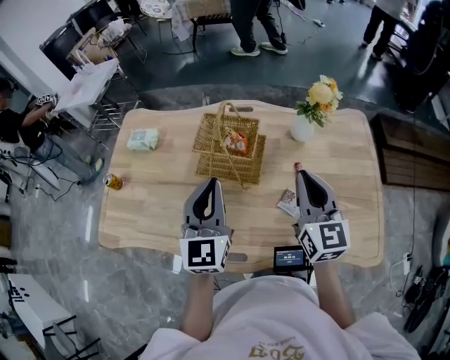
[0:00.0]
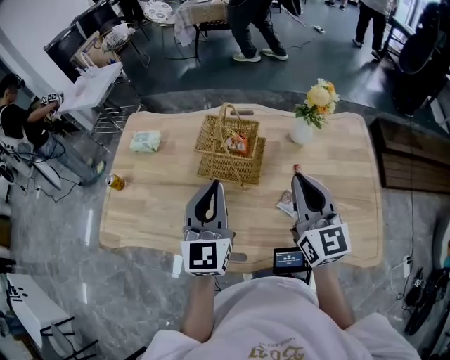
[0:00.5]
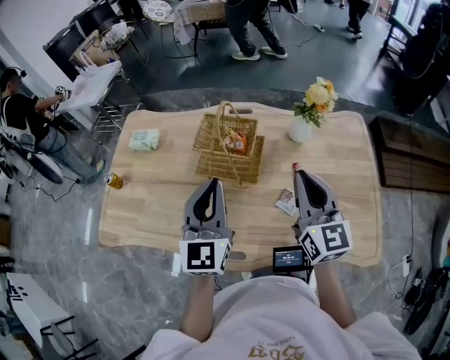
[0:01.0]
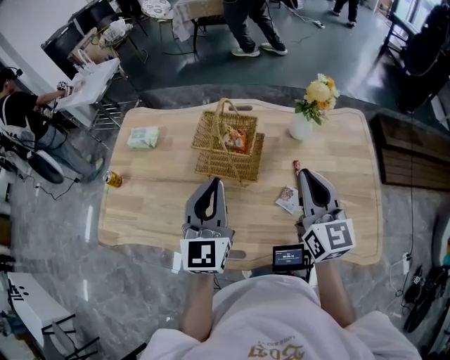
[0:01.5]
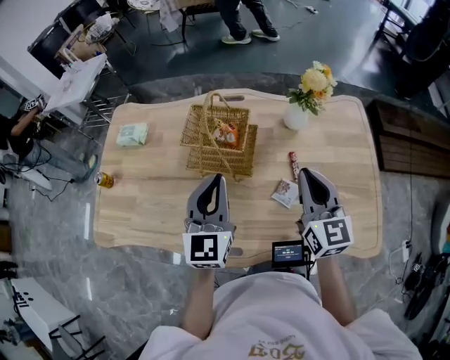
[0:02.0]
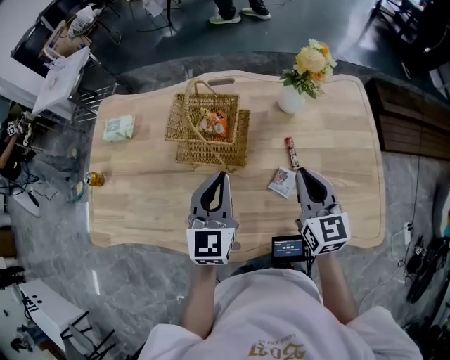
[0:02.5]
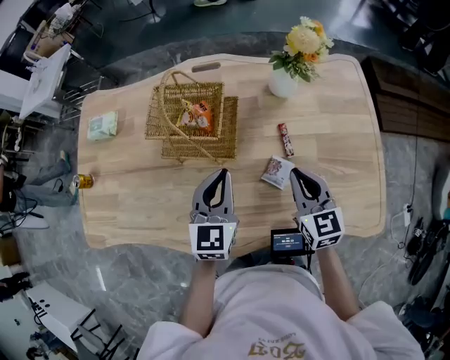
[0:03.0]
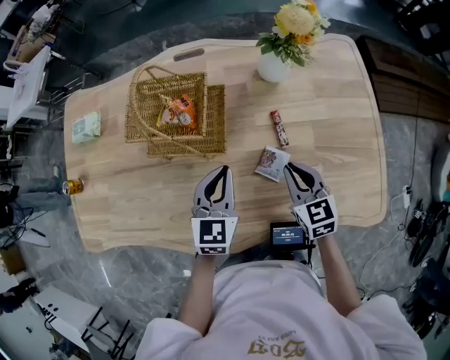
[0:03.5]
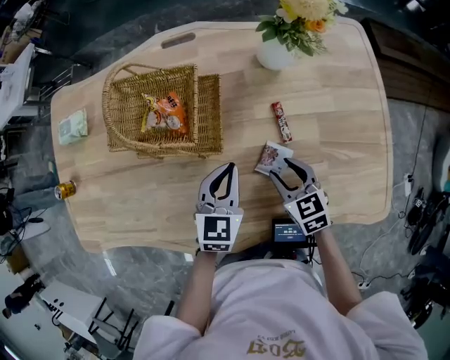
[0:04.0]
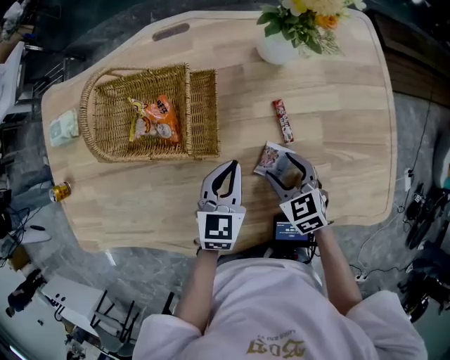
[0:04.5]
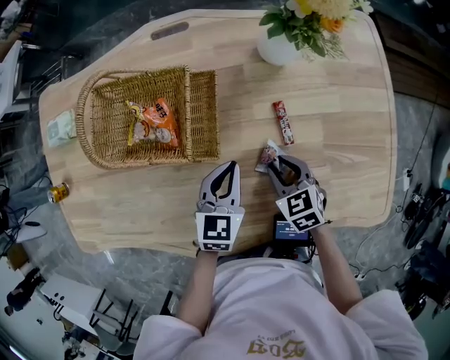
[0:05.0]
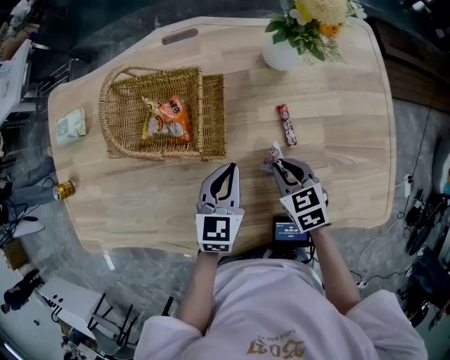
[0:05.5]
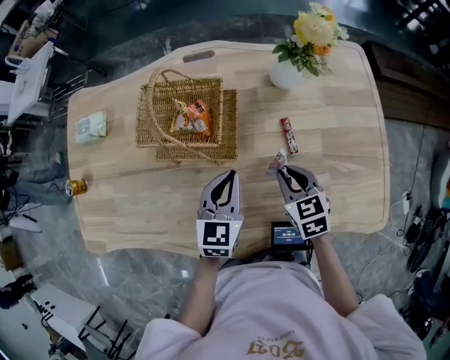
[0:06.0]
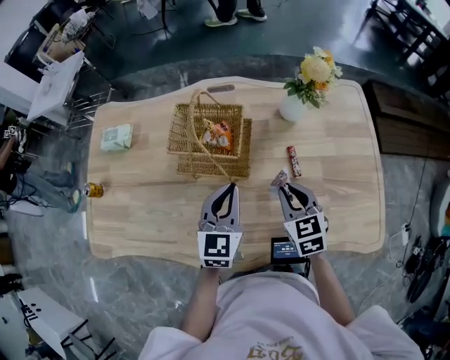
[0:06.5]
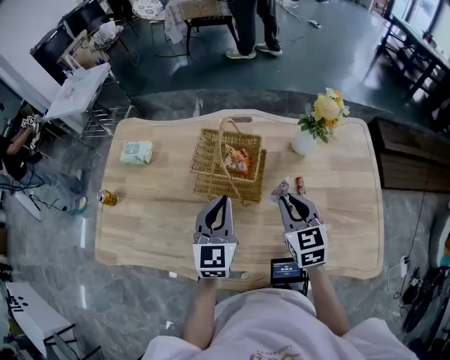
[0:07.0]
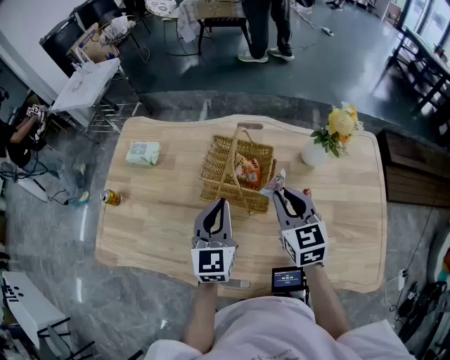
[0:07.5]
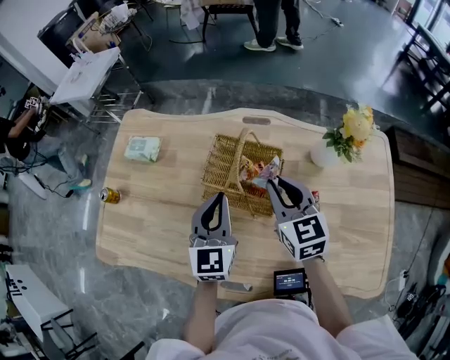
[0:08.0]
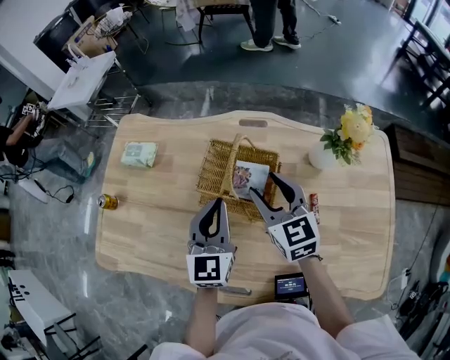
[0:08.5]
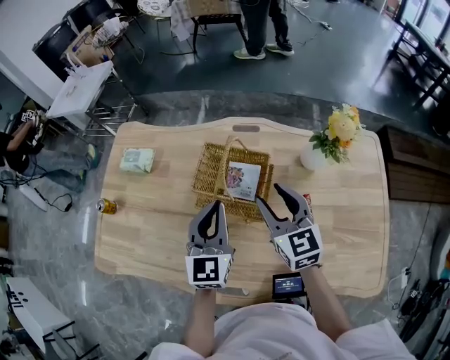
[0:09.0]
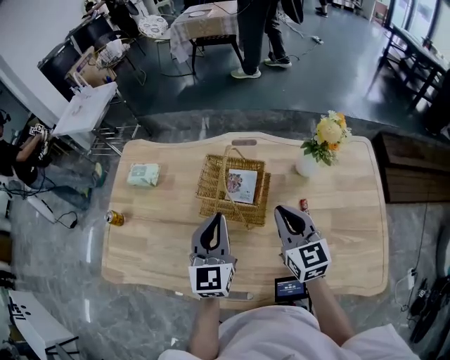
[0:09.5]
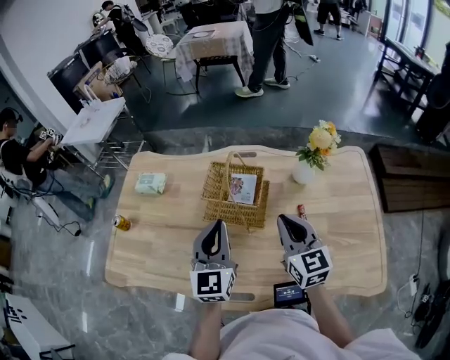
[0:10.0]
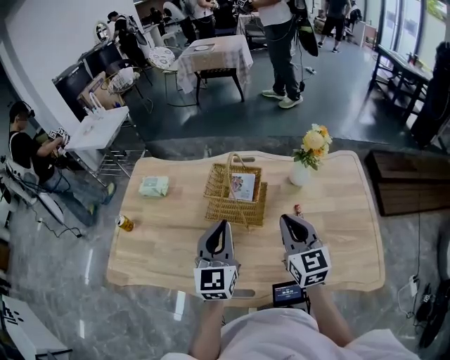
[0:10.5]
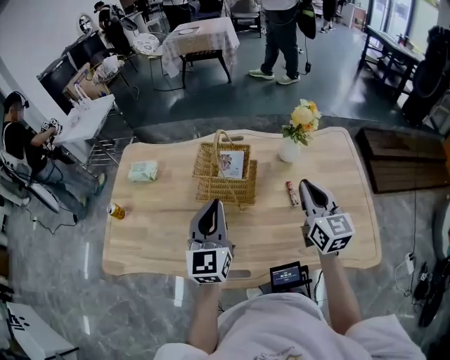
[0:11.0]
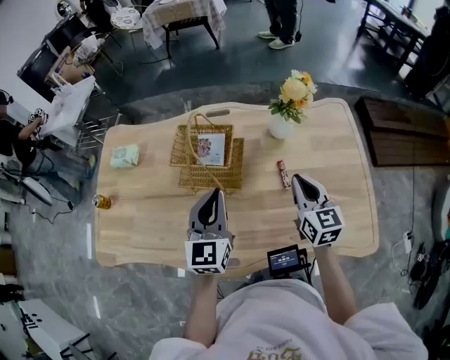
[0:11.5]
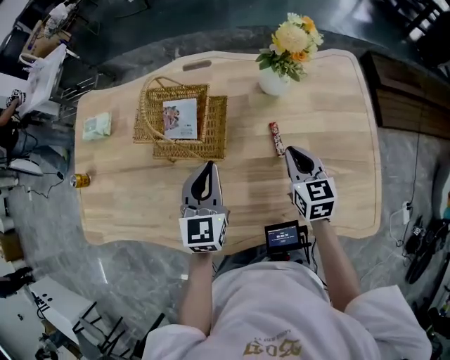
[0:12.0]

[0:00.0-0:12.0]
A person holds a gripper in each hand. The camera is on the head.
0:00.0 to 0:02.0: There are only small adjustments of the grippers.
0:02.0 to 0:04.0: The left gripper goes roughly 25 cm downward and to the right, and rotates approximately 30 degrees. Meanwhile the right gripper moves downward, about 25 cm, tips its fingers downward by some 40 degrees, and opens its fingers.
0:04.0 to 0:06.0: The right gripper moves about 5 cm, and closes; the left gripper changes place by roughly 5 cm.
0:06.0 to 0:08.0: The left gripper is displaced to the left, upward and forward by some 20 cm, and changes its angle by roughly 30 degrees, while the right gripper travels upward, forward and to the left by about 25 cm, and turns by about 30 degrees.
0:08.0 to 0:10.0: The left gripper shifts about 10 cm backward and upward. Meanwhile the right gripper moves backward, about 10 cm, and opens and closes again.
0:10.0 to 0:12.0: Both grippers travel together downward and to the right, some 20 cm. The right gripper rotates approximately 20 degrees.

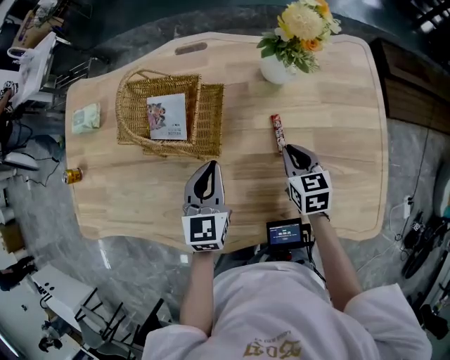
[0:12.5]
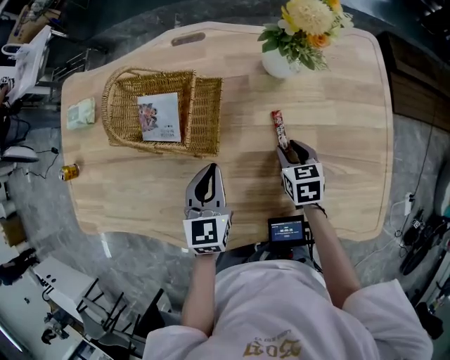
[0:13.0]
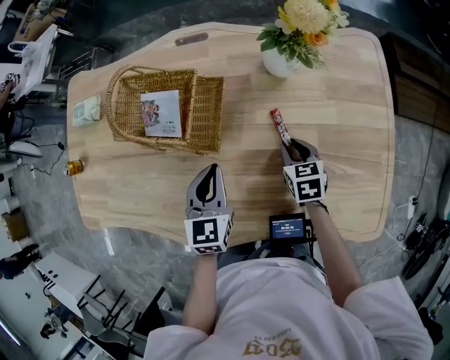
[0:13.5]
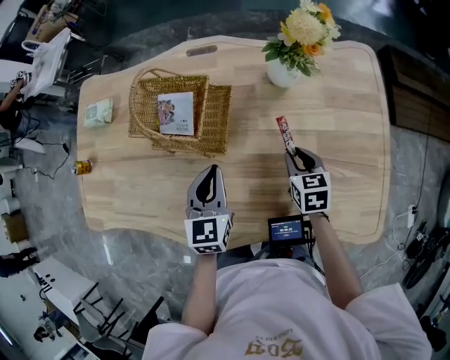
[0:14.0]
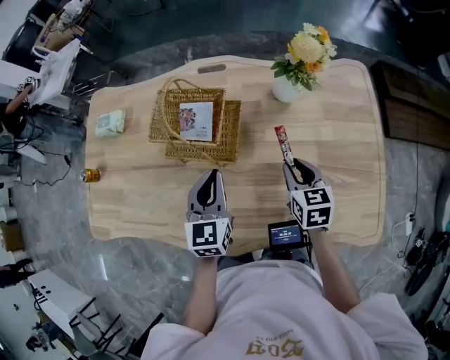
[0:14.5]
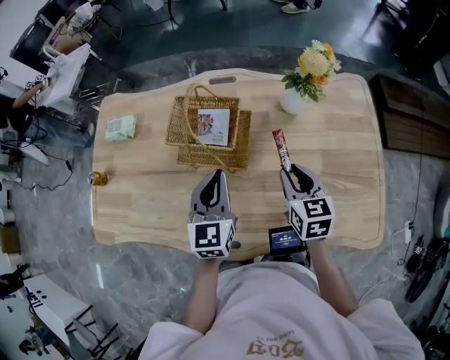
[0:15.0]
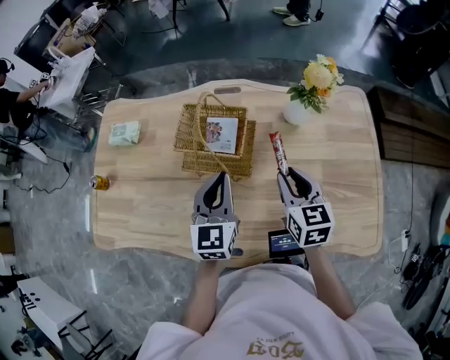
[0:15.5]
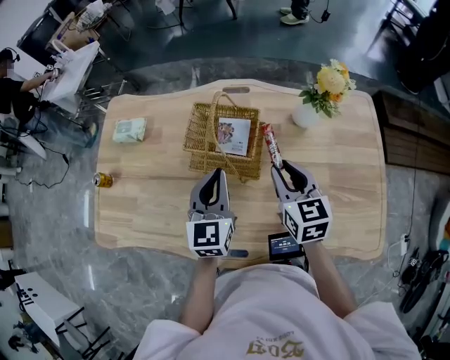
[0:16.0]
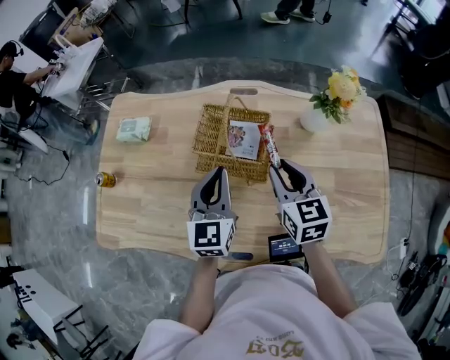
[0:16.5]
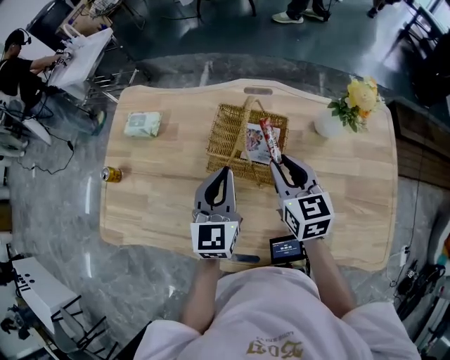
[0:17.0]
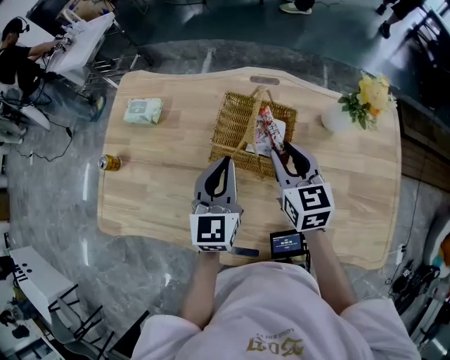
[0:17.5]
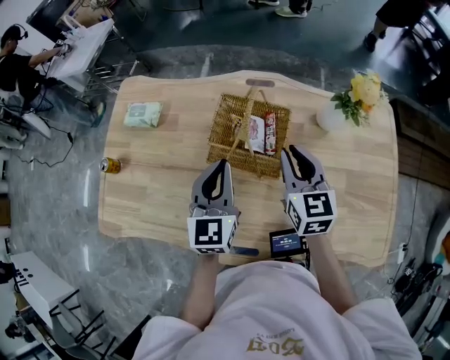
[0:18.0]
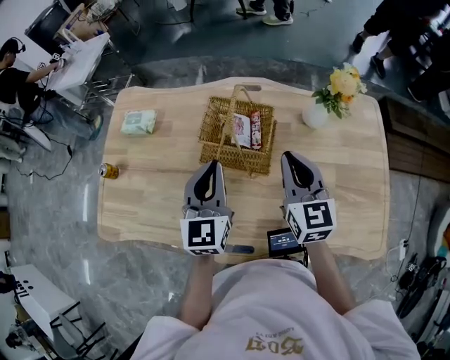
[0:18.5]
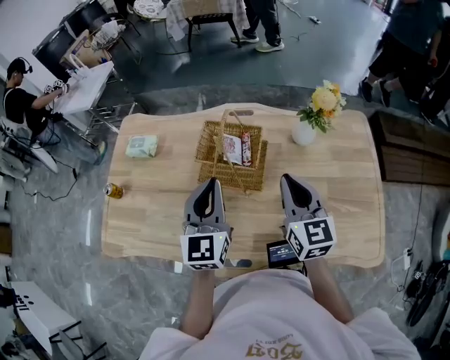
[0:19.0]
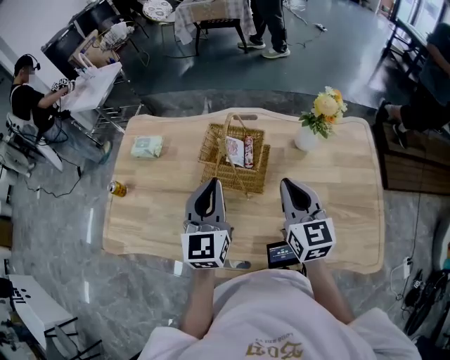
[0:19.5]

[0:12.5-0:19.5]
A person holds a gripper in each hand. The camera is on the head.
0:12.5 to 0:14.5: Both grippers move upward, some 5 cm. The right gripper opens its fingers.
0:14.5 to 0:16.0: The left gripper goes some 10 cm to the left and upward, while the right gripper travels to the left and upward by approximately 15 cm.
0:16.0 to 0:17.5: The right gripper goes roughly 10 cm to the left and forward; the left gripper heads to the left, covering about 5 cm.
0:17.5 to 0:19.5: The left gripper goes approximately 10 cm upward and backward; the right gripper is displaced backward, upward and to the right by approximately 15 cm, and closes up.

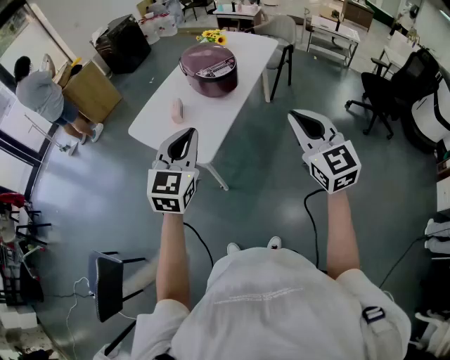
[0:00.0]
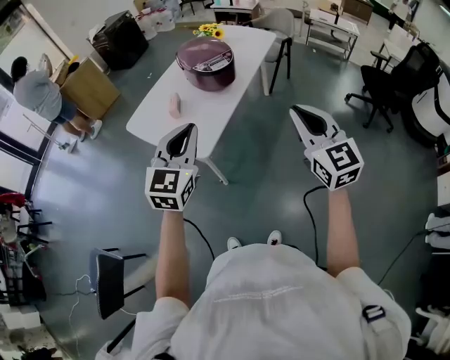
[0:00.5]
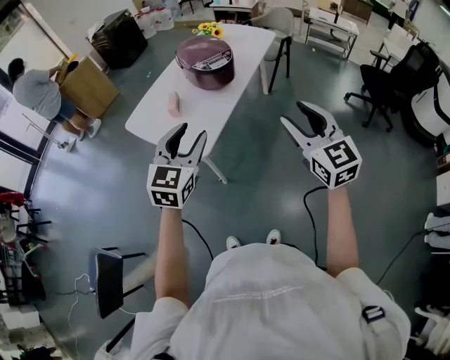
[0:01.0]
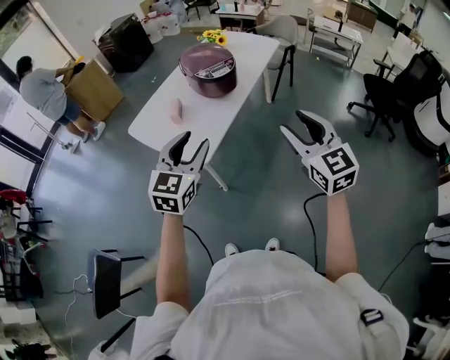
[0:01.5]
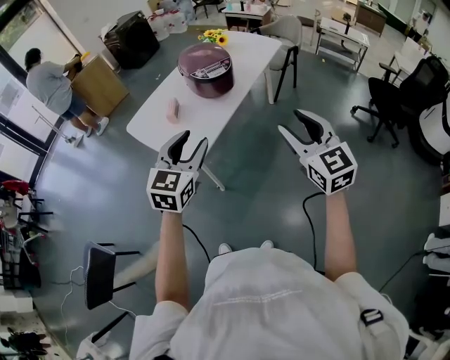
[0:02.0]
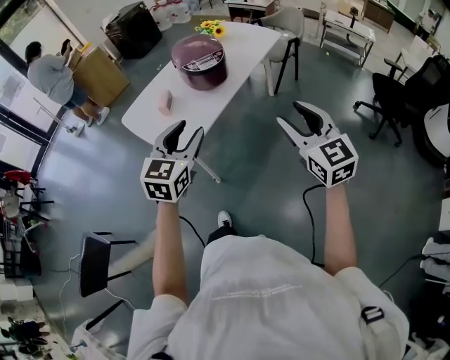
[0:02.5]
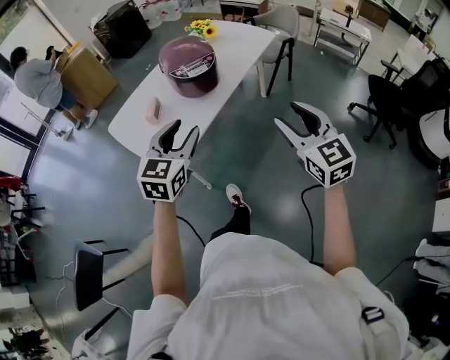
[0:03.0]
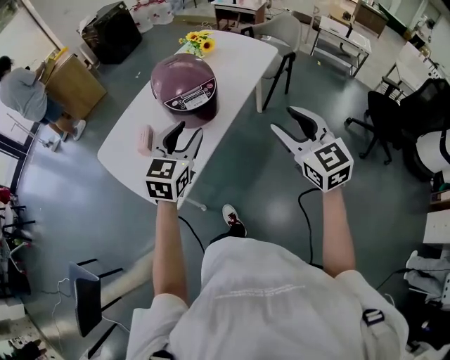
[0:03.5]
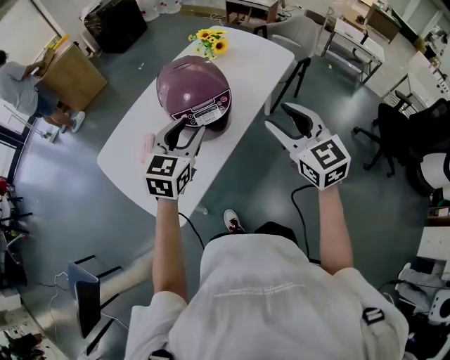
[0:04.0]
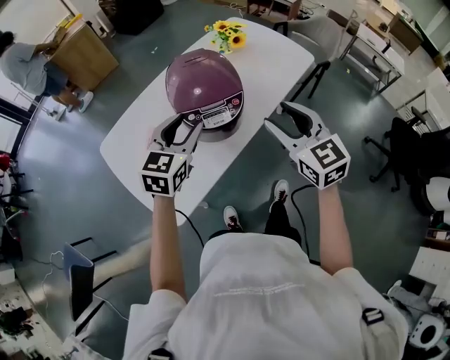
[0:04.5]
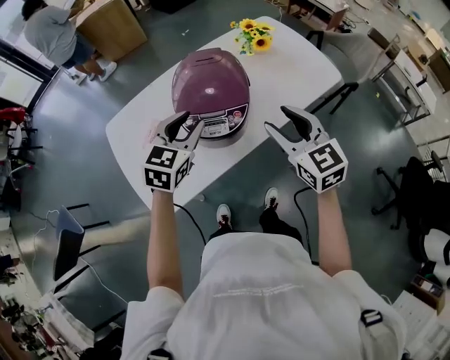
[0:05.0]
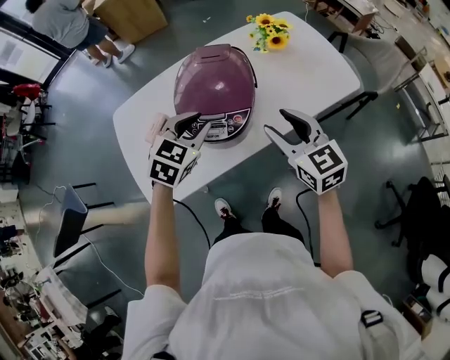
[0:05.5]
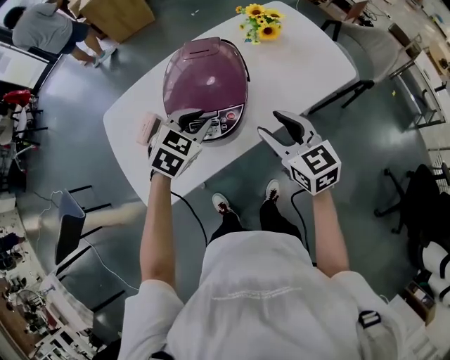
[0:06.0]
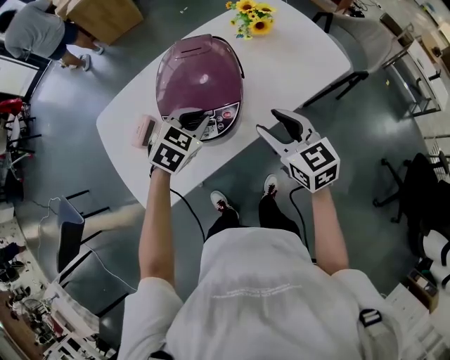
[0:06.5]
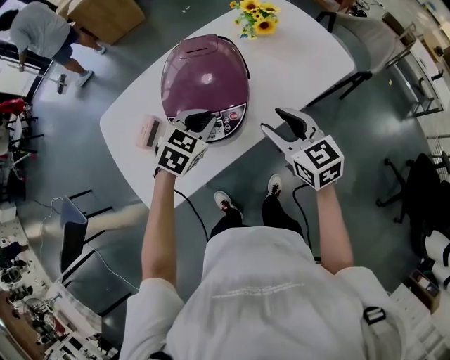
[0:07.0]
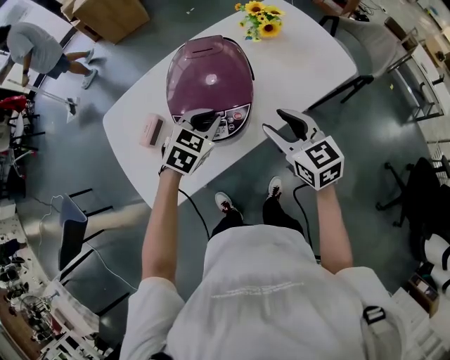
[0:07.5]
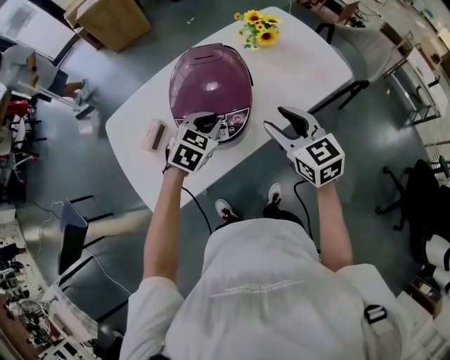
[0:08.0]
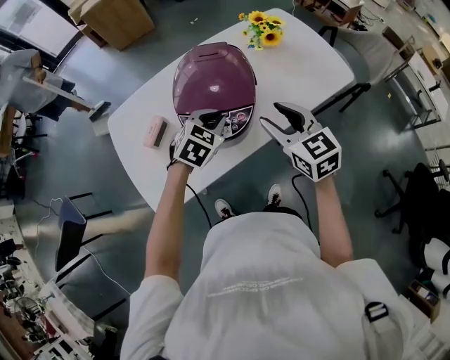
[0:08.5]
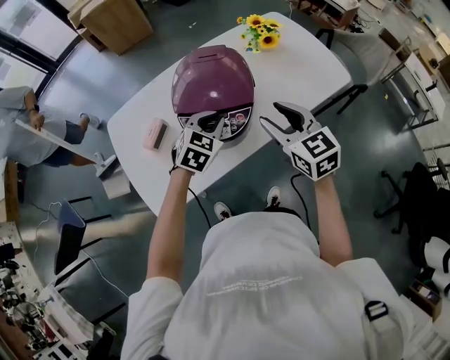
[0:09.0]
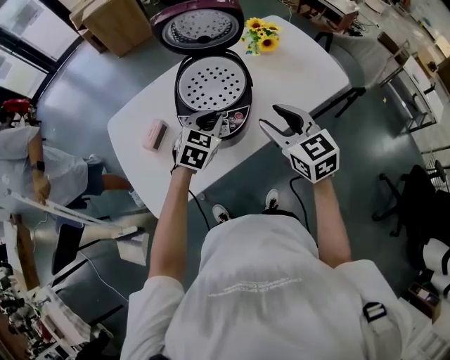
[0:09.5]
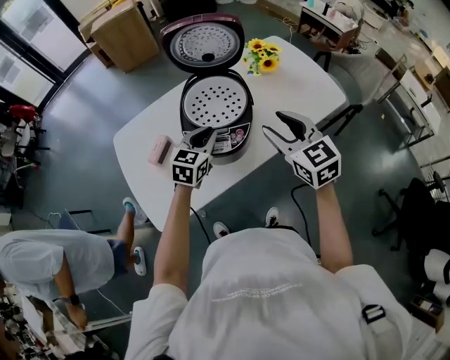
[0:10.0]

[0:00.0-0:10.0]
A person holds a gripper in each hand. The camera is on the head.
0:00.0 to 0:02.0: The two grippers go roughly 5 cm to the right. The right gripper opens up. The left gripper opens its fingers.
0:02.0 to 0:04.0: Both grippers move forward, some 35 cm.
0:04.0 to 0:06.0: The right gripper heads forward and downward, covering approximately 20 cm, and rotates some 30 degrees. The left gripper goes some 15 cm forward, downward and to the right, rotates approximately 30 degrees, and closes its fingers.
0:06.0 to 0:08.0: There are only small adjustments of the grippers.
0:08.0 to 0:10.0: The right gripper shifts some 5 cm upward. Meanwhile the left gripper swivels roughly 20 degrees.
